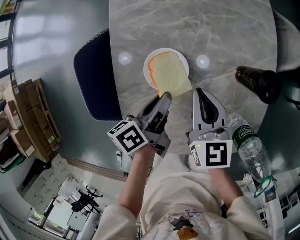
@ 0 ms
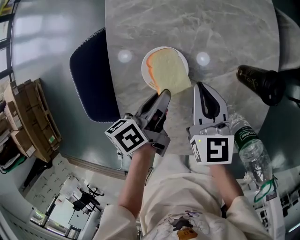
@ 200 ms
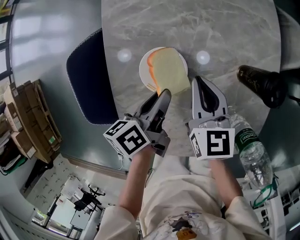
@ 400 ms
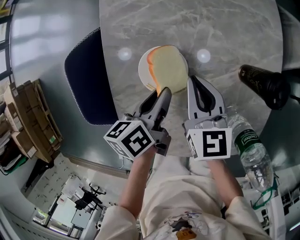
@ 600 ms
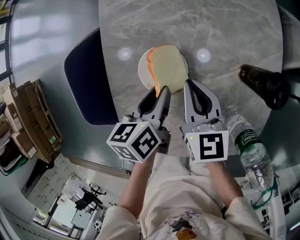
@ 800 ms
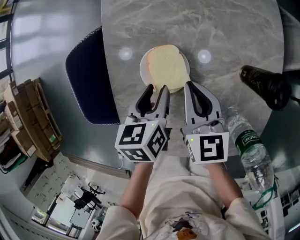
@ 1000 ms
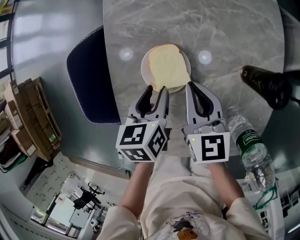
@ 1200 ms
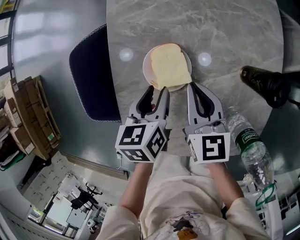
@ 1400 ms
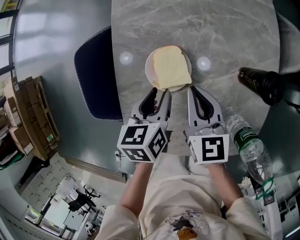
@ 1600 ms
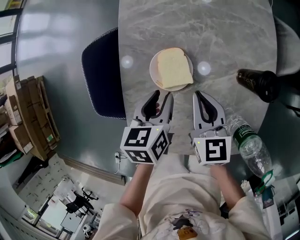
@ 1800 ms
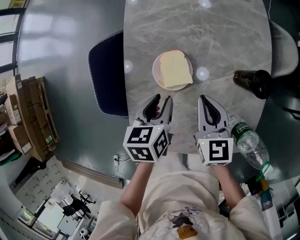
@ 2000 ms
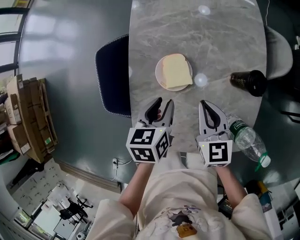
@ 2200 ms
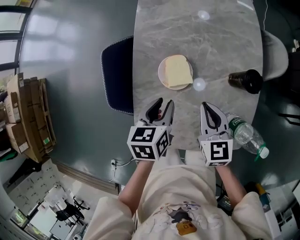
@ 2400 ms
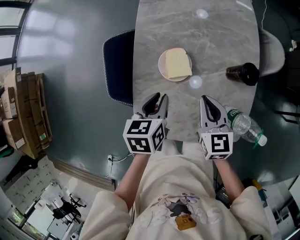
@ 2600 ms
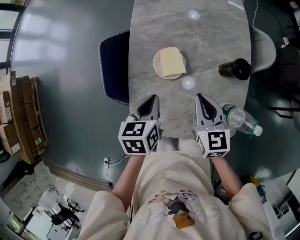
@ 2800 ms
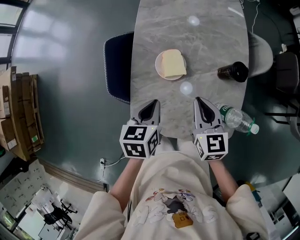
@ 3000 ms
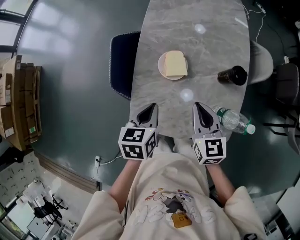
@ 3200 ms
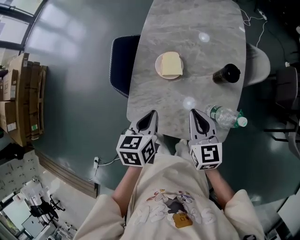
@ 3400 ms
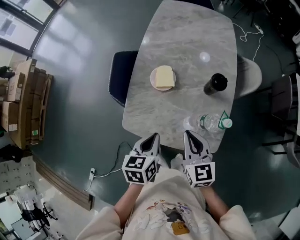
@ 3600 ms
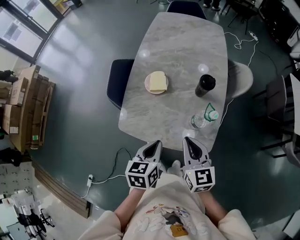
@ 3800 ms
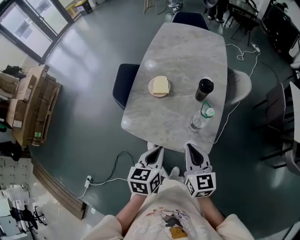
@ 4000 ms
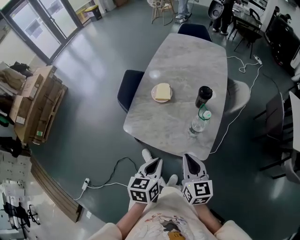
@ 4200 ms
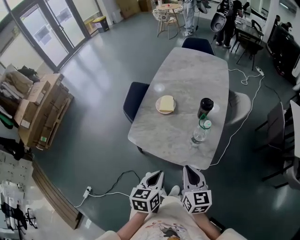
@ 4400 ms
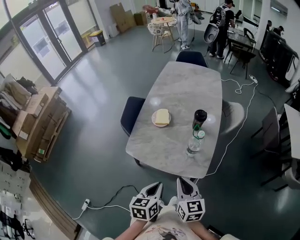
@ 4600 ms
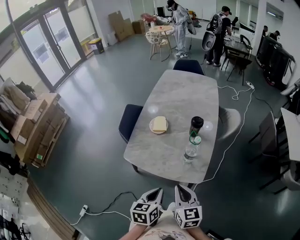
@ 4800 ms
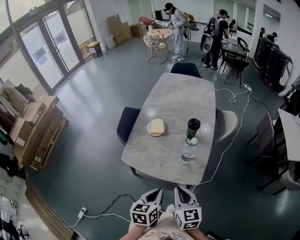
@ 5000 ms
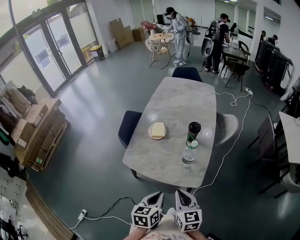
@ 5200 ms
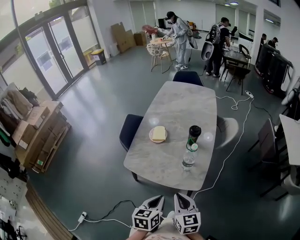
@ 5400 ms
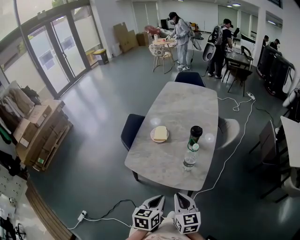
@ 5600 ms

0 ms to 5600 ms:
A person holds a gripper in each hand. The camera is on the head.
0 ms to 1400 ms: The right gripper travels downward by some 5 cm.
1400 ms to 2800 ms: The right gripper goes about 10 cm upward.
2800 ms to 4200 ms: The right gripper moves some 35 cm.
4200 ms to 5600 ms: The right gripper changes place by some 5 cm.

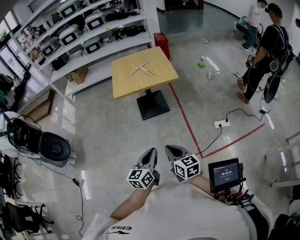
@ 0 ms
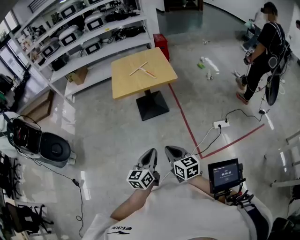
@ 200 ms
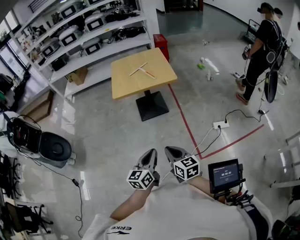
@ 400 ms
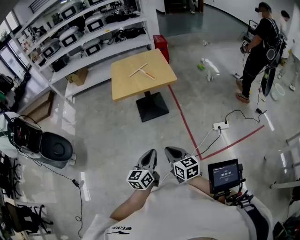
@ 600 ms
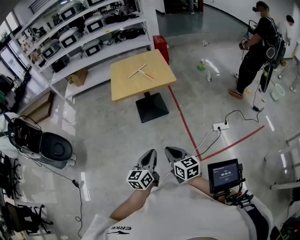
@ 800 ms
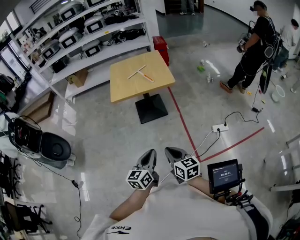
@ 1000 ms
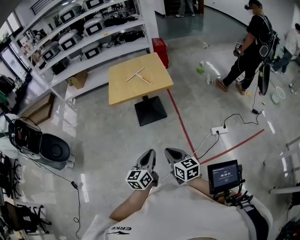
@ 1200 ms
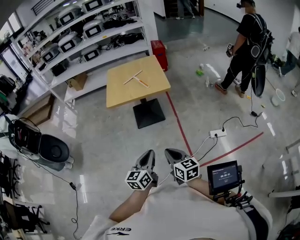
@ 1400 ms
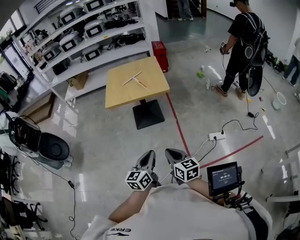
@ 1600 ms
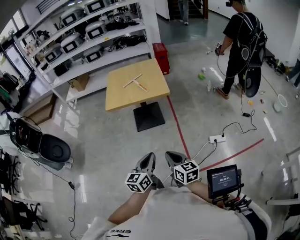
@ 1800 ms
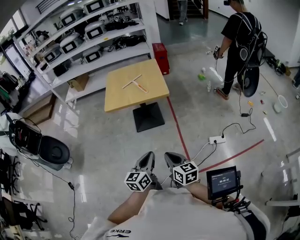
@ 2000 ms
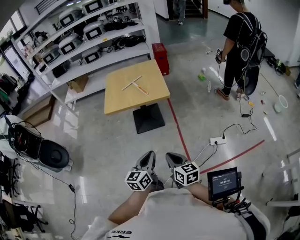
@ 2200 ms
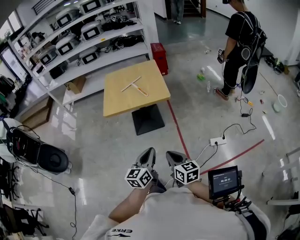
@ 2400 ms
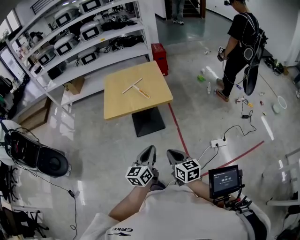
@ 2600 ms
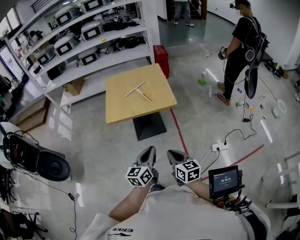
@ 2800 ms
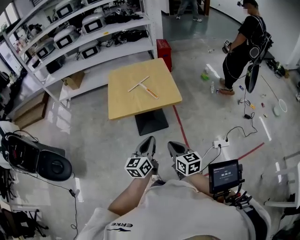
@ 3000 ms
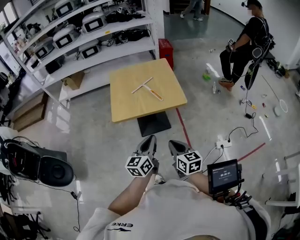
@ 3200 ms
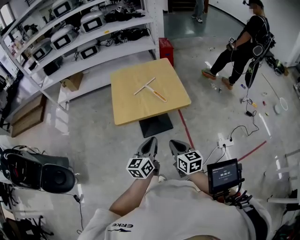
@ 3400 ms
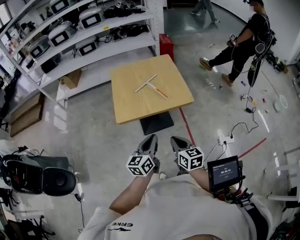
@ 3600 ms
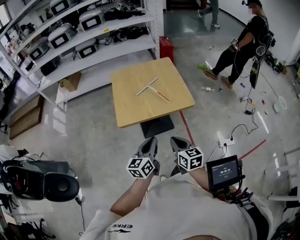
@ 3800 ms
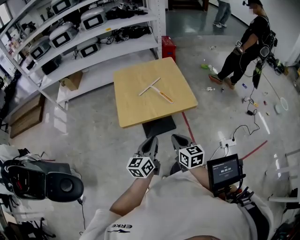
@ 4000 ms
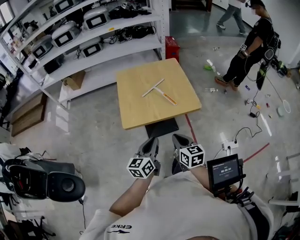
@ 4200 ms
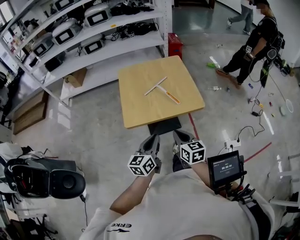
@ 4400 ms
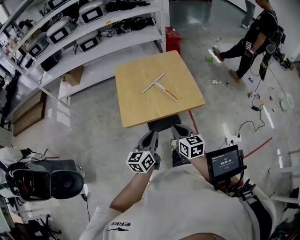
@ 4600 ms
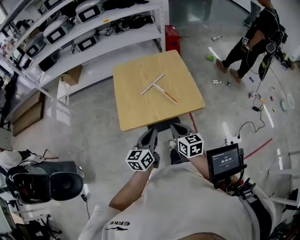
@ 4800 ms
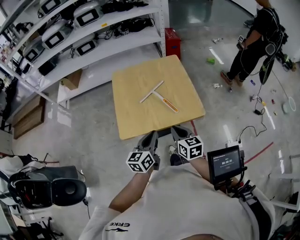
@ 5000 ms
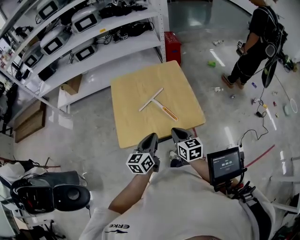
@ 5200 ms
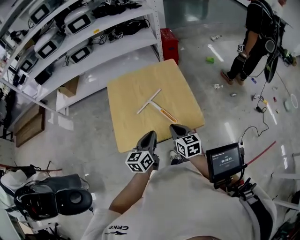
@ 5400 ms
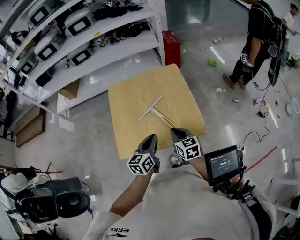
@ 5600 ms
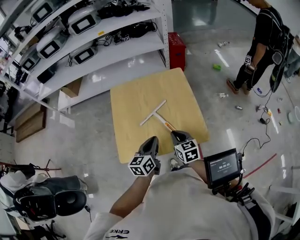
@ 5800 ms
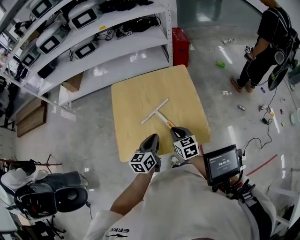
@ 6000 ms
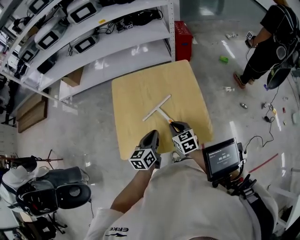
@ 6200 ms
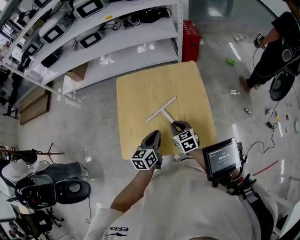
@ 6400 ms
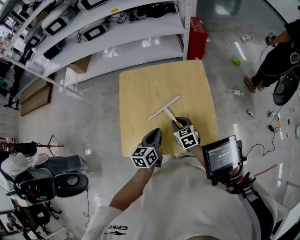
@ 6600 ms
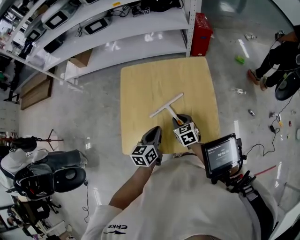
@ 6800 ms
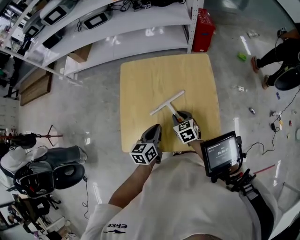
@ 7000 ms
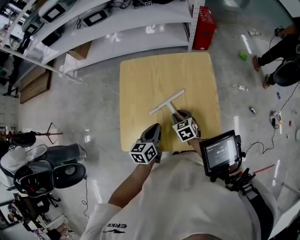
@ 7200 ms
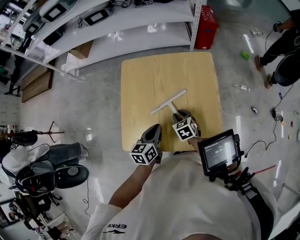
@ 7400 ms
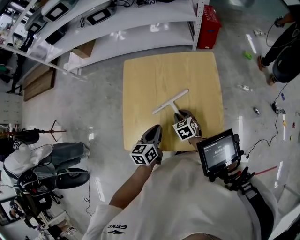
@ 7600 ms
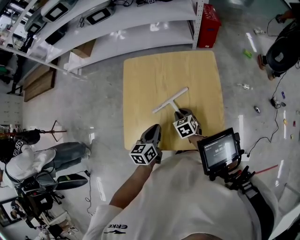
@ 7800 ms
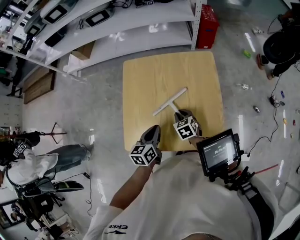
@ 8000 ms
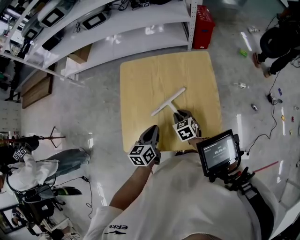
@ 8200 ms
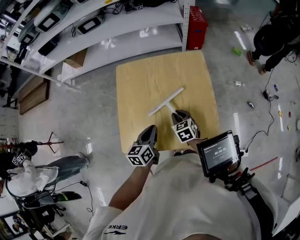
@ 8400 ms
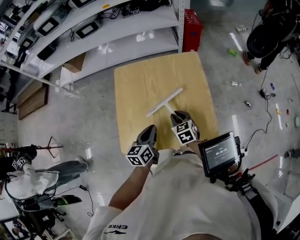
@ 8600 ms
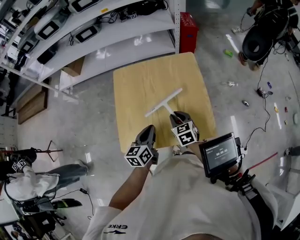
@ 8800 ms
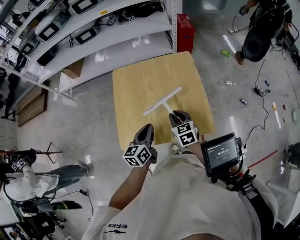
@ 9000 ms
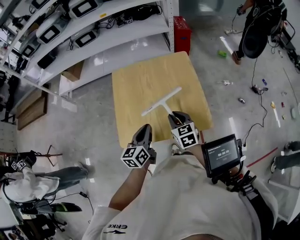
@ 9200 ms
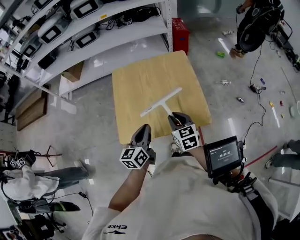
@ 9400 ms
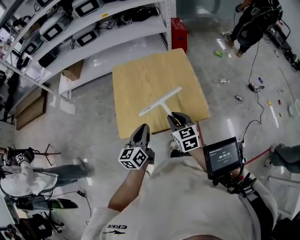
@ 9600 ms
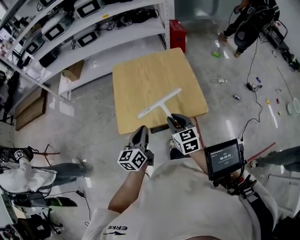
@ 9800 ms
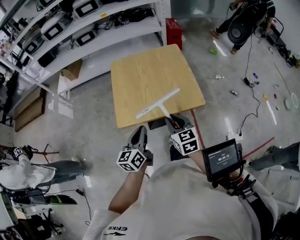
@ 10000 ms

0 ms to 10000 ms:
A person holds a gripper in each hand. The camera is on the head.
0 ms to 1400 ms: Both grippers travel together to the right, approximately 10 cm.
1400 ms to 2800 ms: The grippers both shift forward by roughly 15 cm.
2800 ms to 4200 ms: The right gripper is displaced forward and to the left by approximately 20 cm, while the left gripper goes approximately 20 cm to the left and forward.
4200 ms to 5800 ms: Both grippers travel together forward, approximately 30 cm.
5800 ms to 7200 ms: The left gripper travels forward and downward by some 10 cm. The right gripper goes roughly 20 cm downward and forward, and rotates roughly 20 degrees.
7200 ms to 8600 ms: The right gripper is displaced upward by roughly 5 cm.
8600 ms to 10000 ms: The right gripper heads backward and upward, covering some 30 cm. The left gripper moves backward, roughly 20 cm.

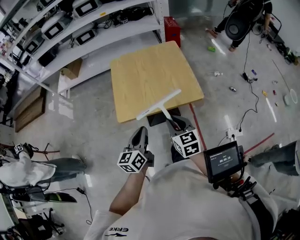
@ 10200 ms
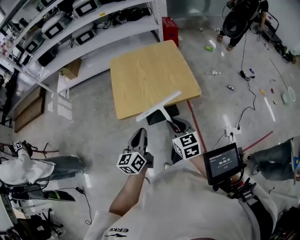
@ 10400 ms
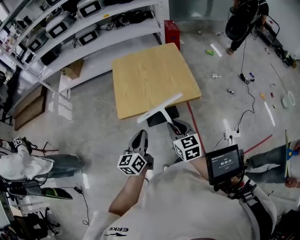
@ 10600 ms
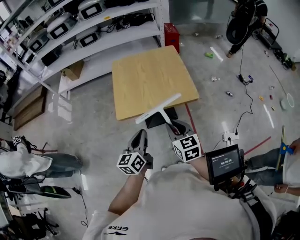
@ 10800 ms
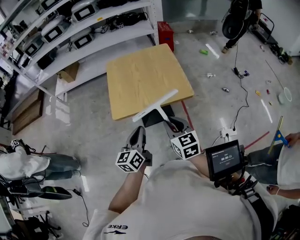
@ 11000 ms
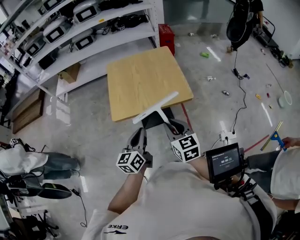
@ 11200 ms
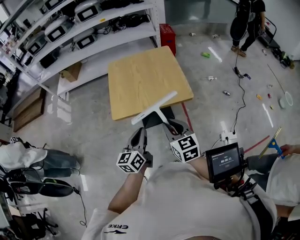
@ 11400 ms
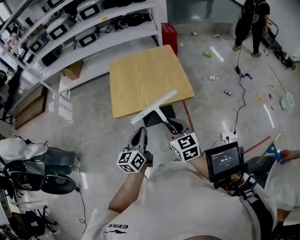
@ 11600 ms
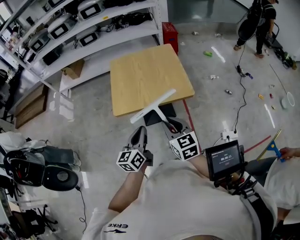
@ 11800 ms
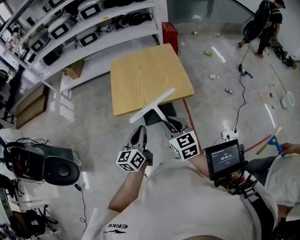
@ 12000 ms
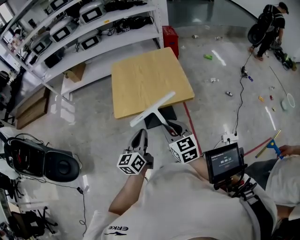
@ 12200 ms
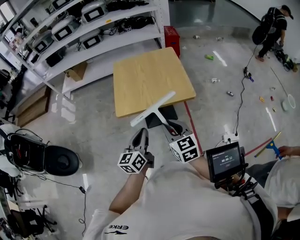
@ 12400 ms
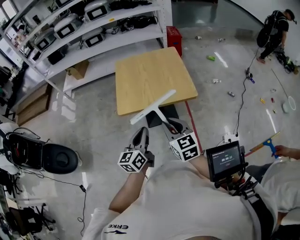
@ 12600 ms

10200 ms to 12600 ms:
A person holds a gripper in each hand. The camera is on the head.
10200 ms to 11400 ms: The right gripper is displaced backward and upward by some 10 cm. Meanwhile the left gripper is displaced backward by some 10 cm.
11400 ms to 12600 ms: The grippers move only a little.

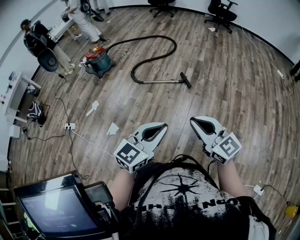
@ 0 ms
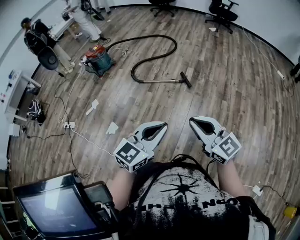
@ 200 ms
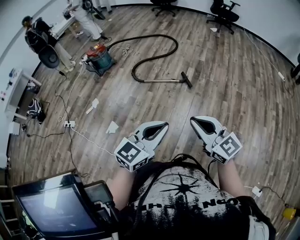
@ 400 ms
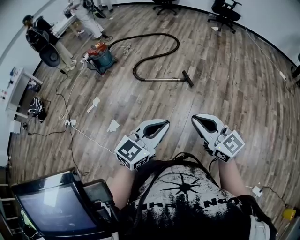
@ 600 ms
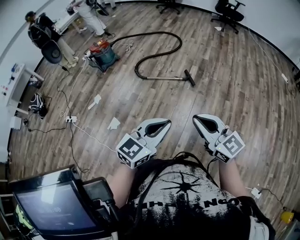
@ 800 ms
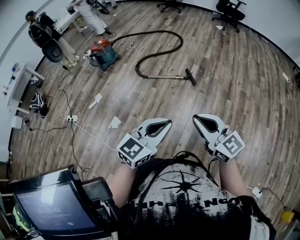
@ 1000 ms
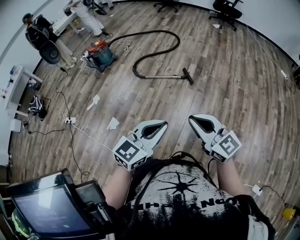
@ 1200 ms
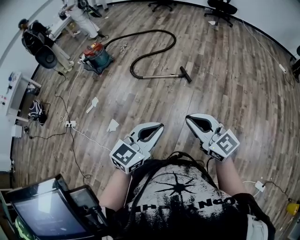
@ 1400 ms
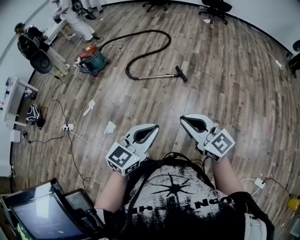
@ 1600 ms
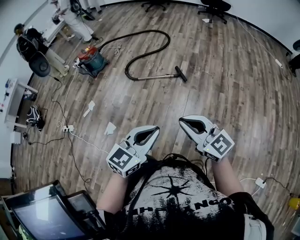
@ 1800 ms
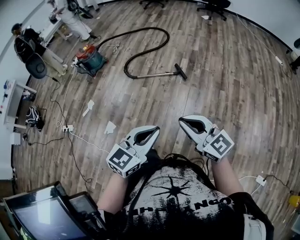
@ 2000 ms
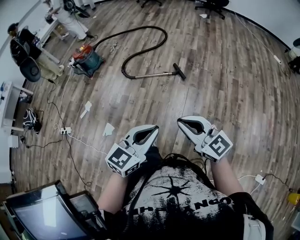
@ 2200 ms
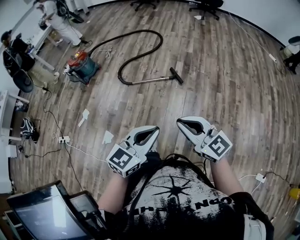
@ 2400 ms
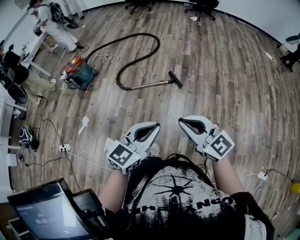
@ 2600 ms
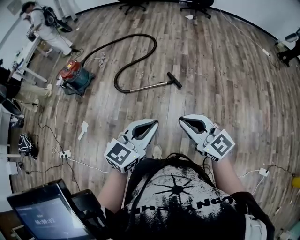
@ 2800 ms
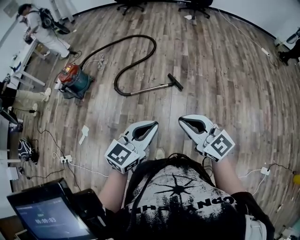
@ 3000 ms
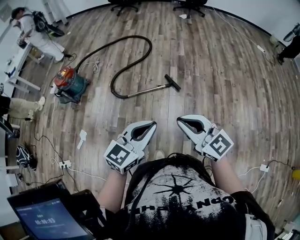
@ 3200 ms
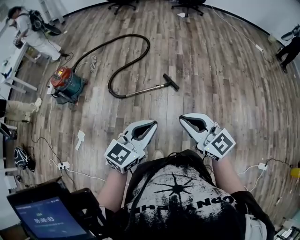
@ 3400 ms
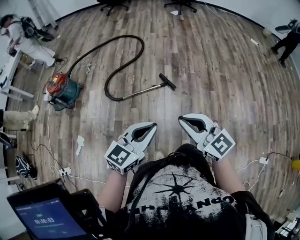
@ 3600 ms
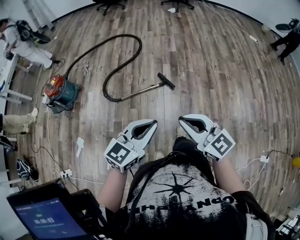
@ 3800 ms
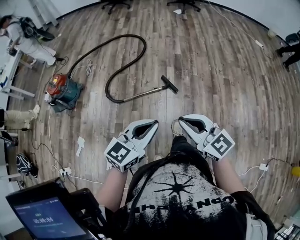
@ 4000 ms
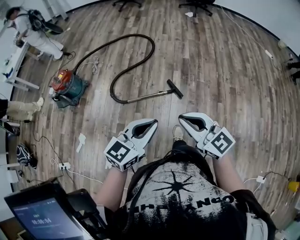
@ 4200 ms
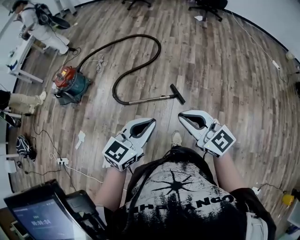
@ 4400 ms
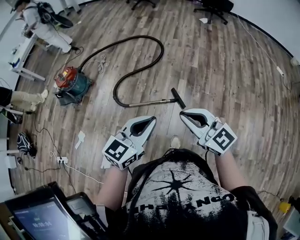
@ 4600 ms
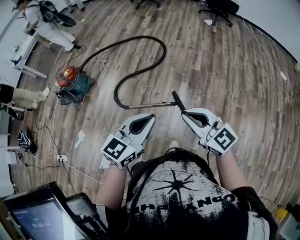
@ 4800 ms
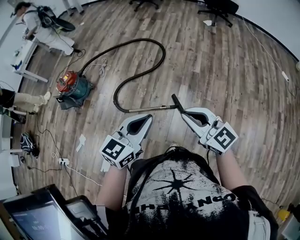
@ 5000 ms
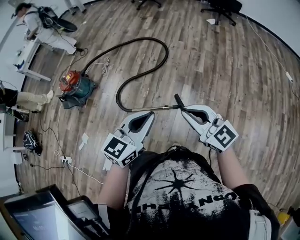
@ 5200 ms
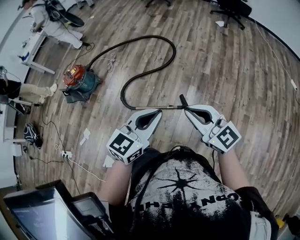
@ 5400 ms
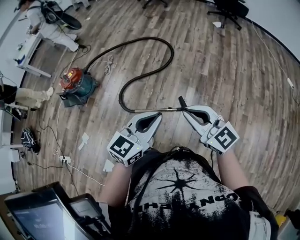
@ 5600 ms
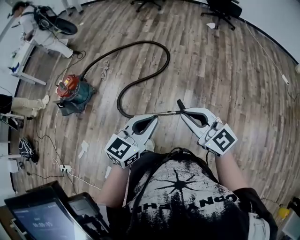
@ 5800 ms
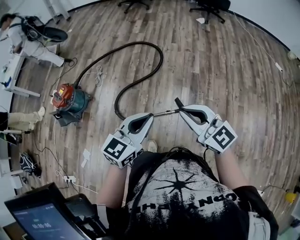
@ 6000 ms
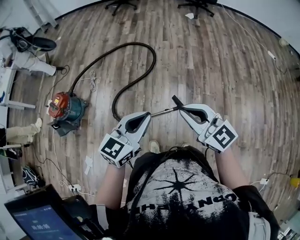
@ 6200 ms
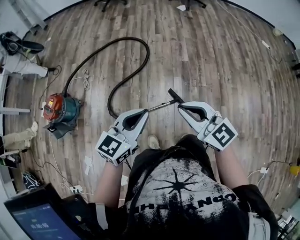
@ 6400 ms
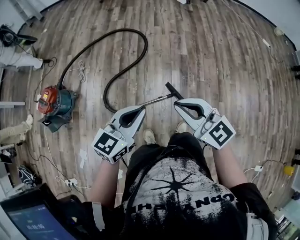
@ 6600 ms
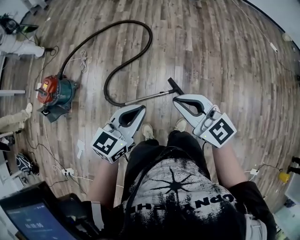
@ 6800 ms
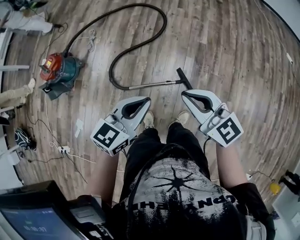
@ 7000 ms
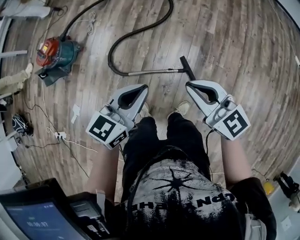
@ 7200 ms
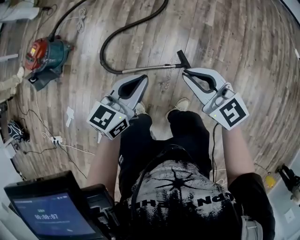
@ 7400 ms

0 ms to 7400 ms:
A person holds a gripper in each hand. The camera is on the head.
0 ms to 1400 ms: Both grippers stay about where they are.
1400 ms to 3000 ms: The grippers both shift forward and to the left by roughly 25 cm.
3000 ms to 4400 ms: The grippers both shift forward by some 25 cm.
4400 ms to 6000 ms: The grippers both shift forward by roughly 25 cm.
6000 ms to 7400 ms: Both grippers move downward and forward, approximately 20 cm.
